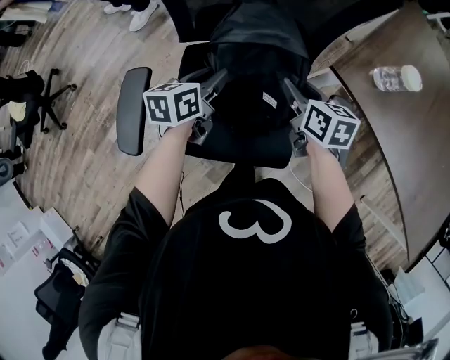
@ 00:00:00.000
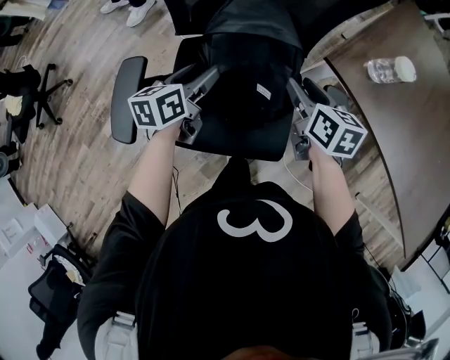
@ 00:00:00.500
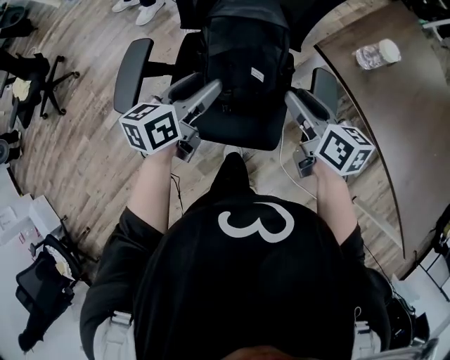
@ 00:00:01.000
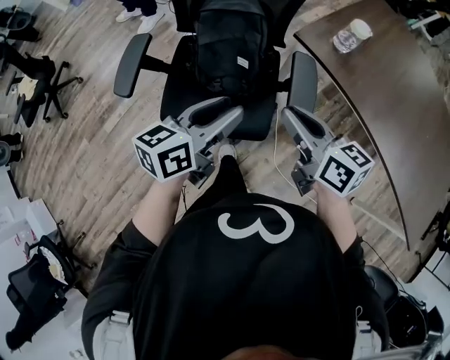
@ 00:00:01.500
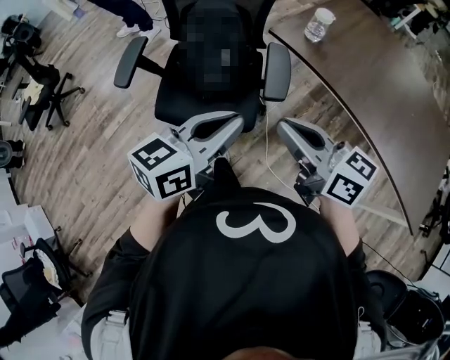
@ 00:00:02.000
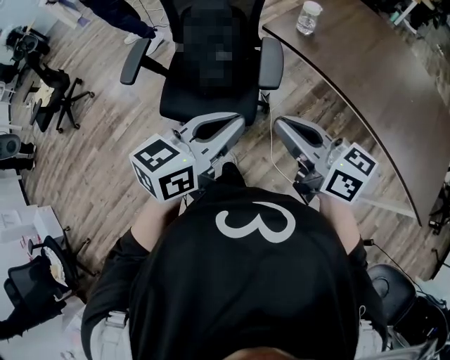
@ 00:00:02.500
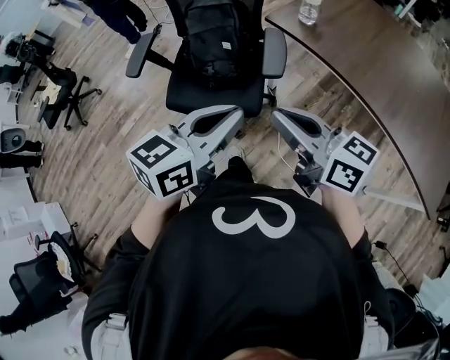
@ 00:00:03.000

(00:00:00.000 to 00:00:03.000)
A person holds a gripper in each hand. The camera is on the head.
00:00:00.000 - 00:00:01.500: The left gripper shifts some 35 cm backward, upward and to the right; the right gripper goes some 30 cm backward and upward, and swivels roughly 20 degrees.
00:00:01.500 - 00:00:03.000: The left gripper moves backward, upward and to the right, about 25 cm, and closes up. The right gripper is displaced backward and upward by about 25 cm.

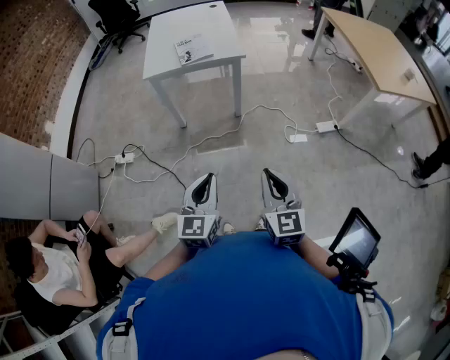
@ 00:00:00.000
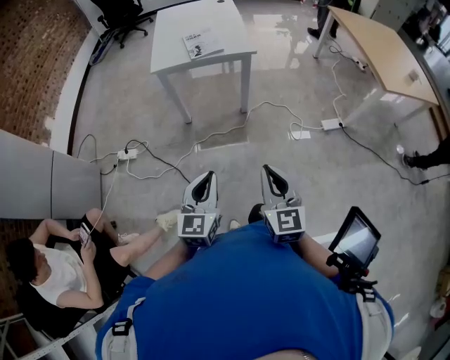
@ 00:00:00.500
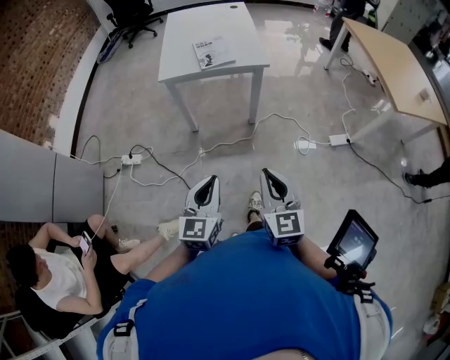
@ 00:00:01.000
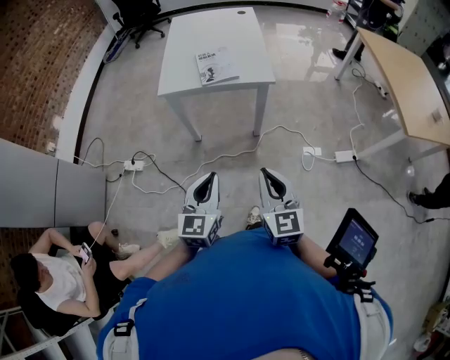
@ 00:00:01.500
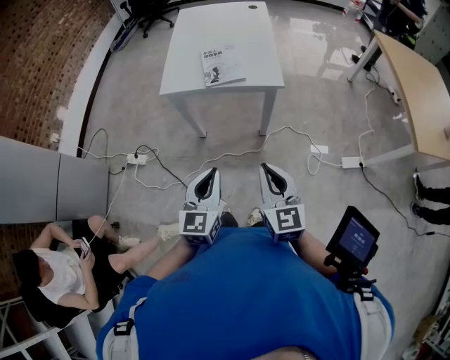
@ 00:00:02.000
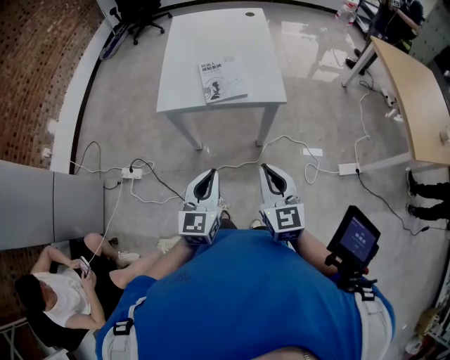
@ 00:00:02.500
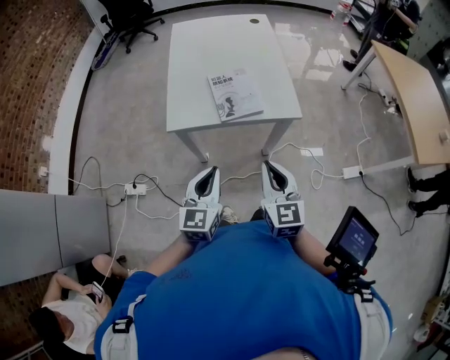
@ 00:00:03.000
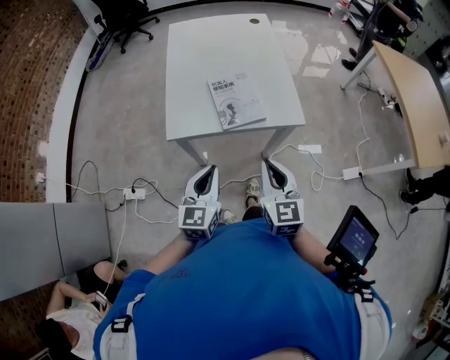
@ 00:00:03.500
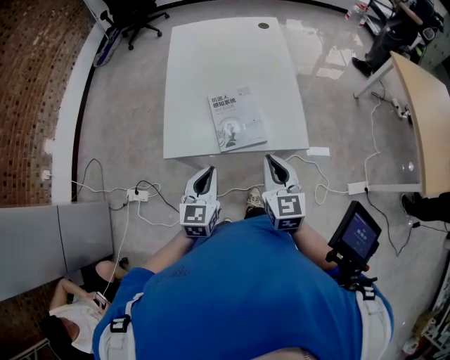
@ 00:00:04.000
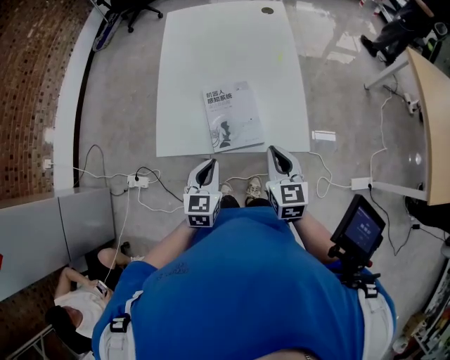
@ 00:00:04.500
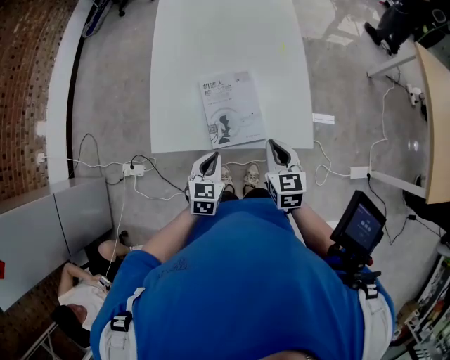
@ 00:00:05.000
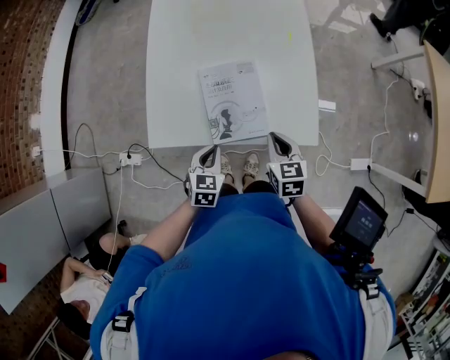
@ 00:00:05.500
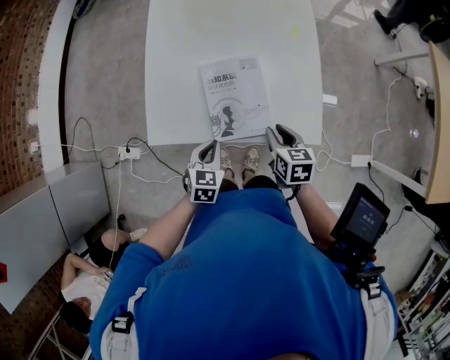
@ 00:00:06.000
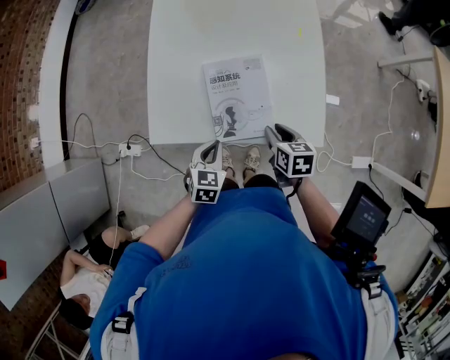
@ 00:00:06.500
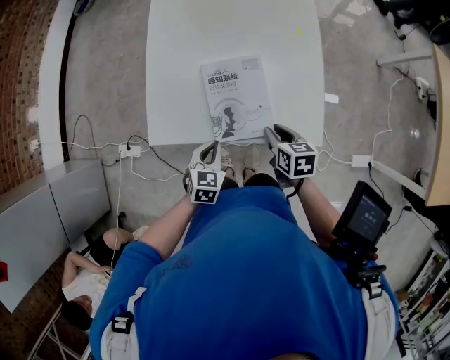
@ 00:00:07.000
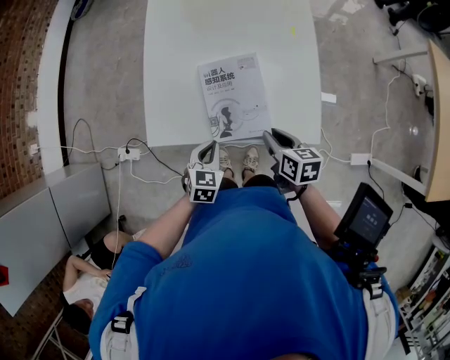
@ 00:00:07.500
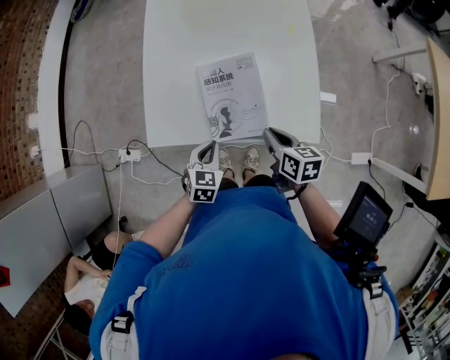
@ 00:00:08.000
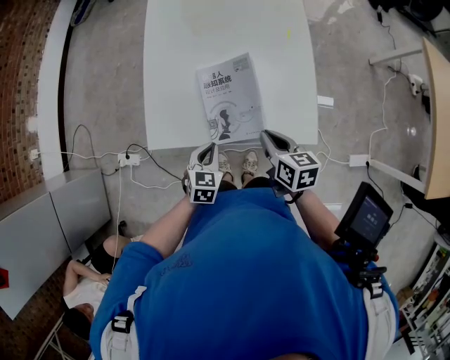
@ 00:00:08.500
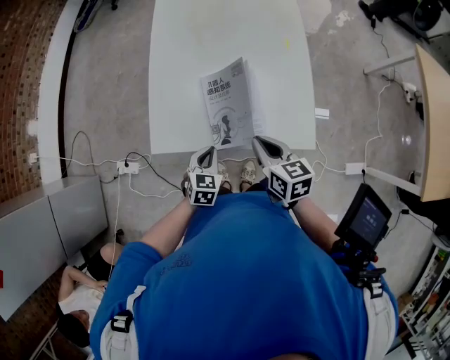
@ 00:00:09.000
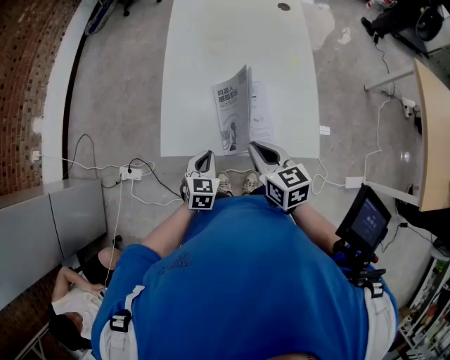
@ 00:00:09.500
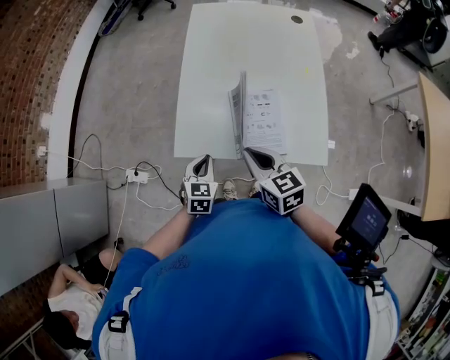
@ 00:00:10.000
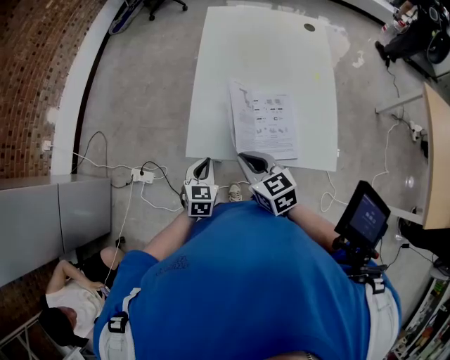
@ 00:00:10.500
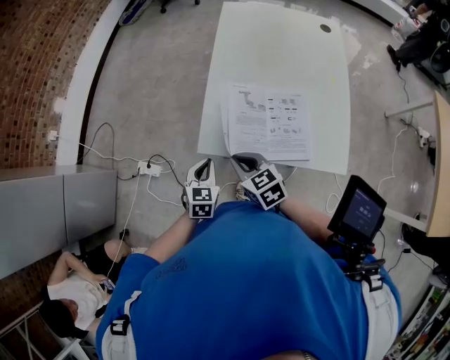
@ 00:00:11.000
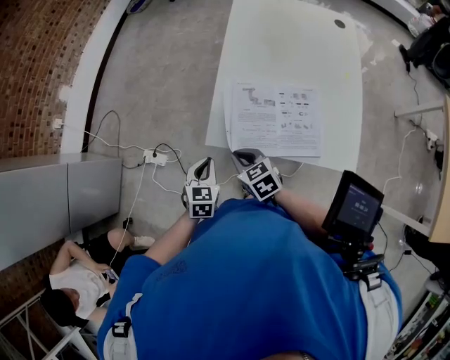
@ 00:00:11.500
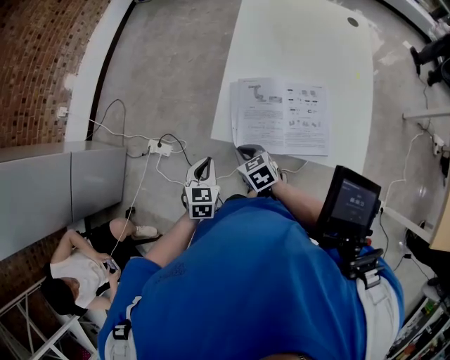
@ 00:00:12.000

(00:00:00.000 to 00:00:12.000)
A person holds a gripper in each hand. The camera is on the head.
00:00:00.000 - 00:00:02.000: The grippers both shift forward by about 30 cm.
00:00:02.000 - 00:00:04.000: Both grippers move forward, some 35 cm.
00:00:04.000 - 00:00:06.000: Both grippers move downward and forward, about 20 cm. The left gripper swivels some 30 degrees; the right gripper rotates roughly 30 degrees, and opens.
00:00:06.000 - 00:00:08.000: The grippers stay close to where they were, moving slightly.
00:00:08.000 - 00:00:10.000: The right gripper shifts about 20 cm upward and to the left, and rotates roughly 30 degrees; the left gripper shifts approximately 10 cm to the left and upward.
00:00:10.000 - 00:00:12.000: The right gripper heads to the left and downward, covering approximately 20 cm, and rotates approximately 30 degrees, while the left gripper heads to the left, covering about 15 cm.

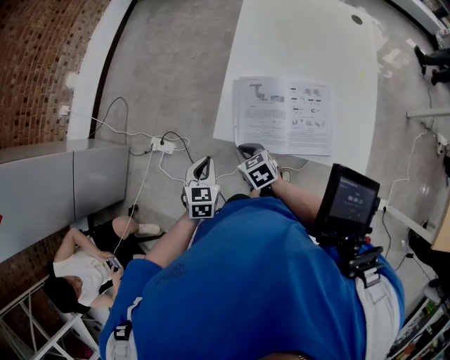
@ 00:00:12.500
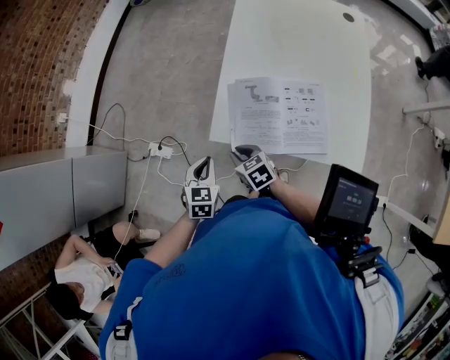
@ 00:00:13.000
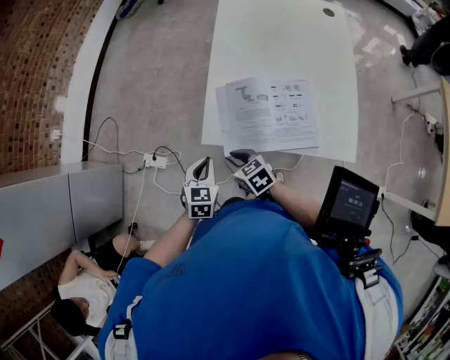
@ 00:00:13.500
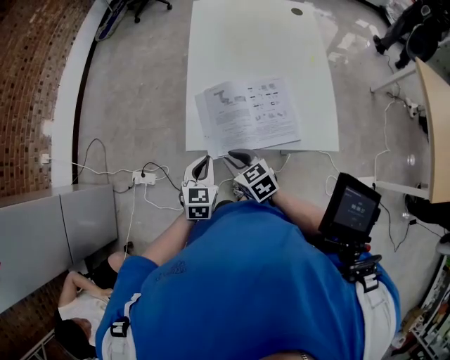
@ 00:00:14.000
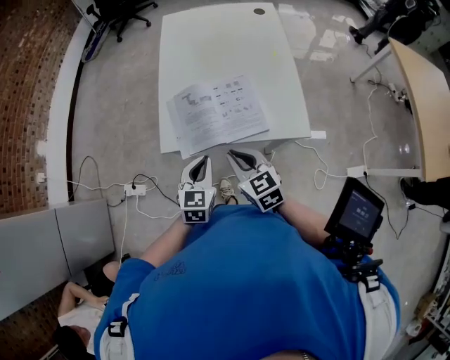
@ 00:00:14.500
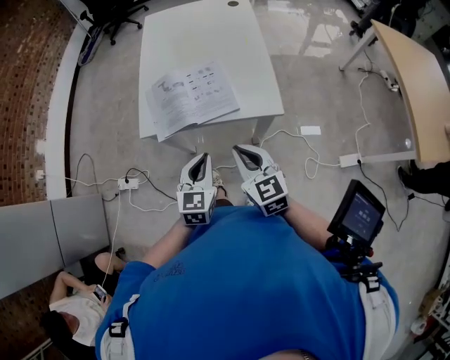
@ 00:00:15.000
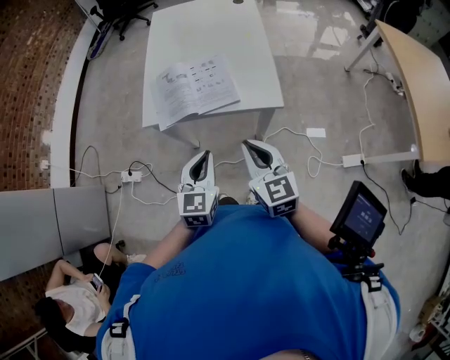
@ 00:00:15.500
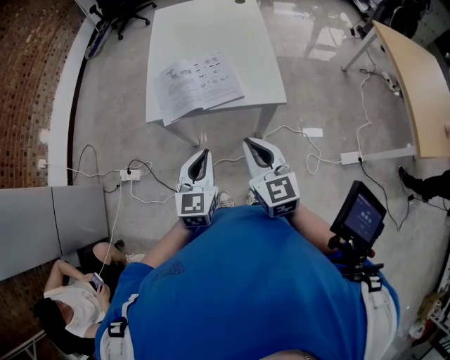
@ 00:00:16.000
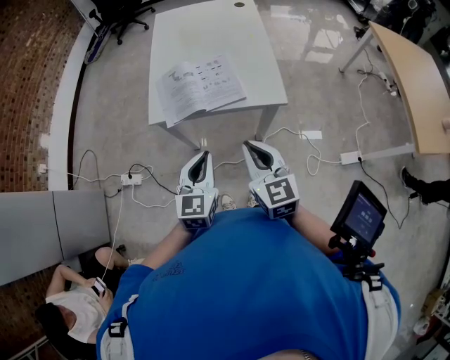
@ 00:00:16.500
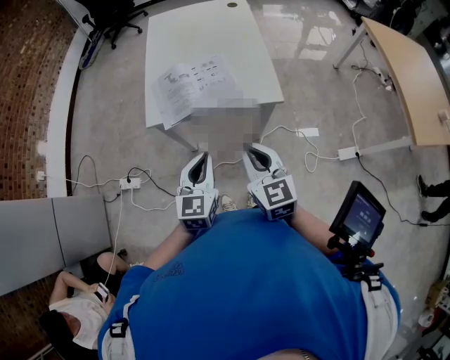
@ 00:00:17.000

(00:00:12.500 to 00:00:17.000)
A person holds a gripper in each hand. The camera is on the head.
00:00:12.500 - 00:00:14.500: The right gripper shifts by about 25 cm, and changes its angle by some 30 degrees; the left gripper shifts by roughly 20 cm, and rotates about 20 degrees.
00:00:14.500 - 00:00:17.000: The right gripper moves backward, to the right and upward, some 20 cm. The left gripper heads backward, upward and to the right, covering roughly 20 cm.

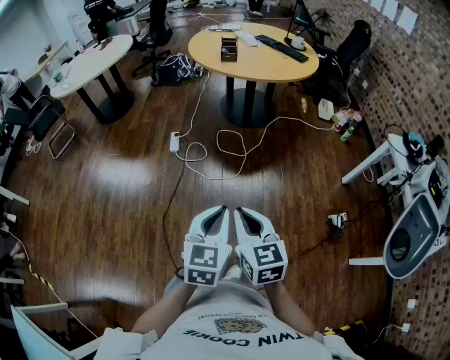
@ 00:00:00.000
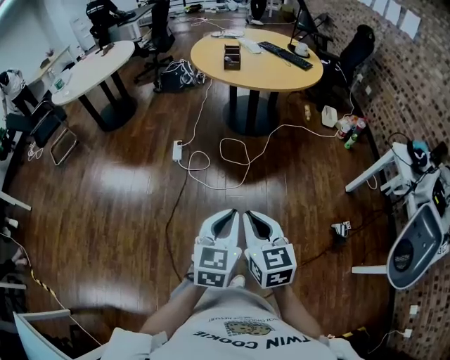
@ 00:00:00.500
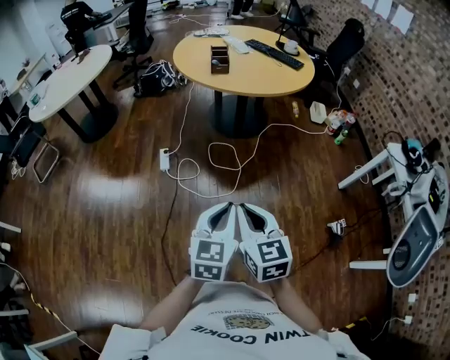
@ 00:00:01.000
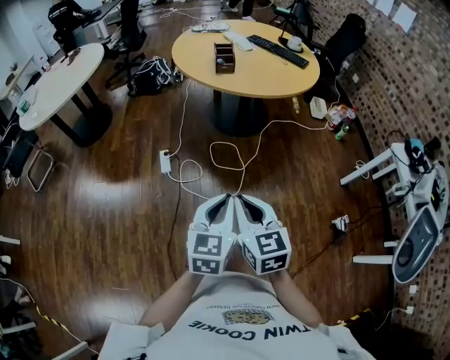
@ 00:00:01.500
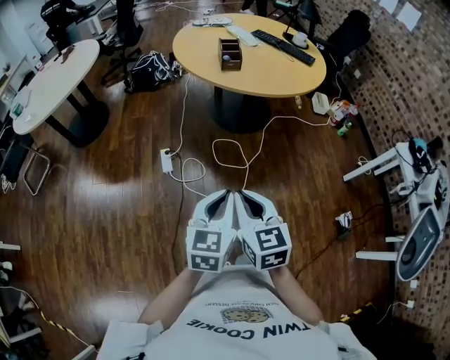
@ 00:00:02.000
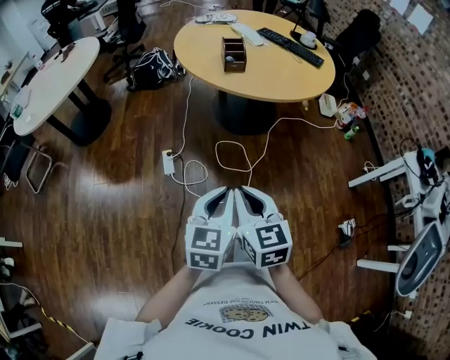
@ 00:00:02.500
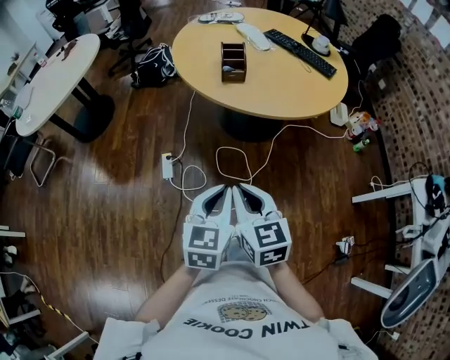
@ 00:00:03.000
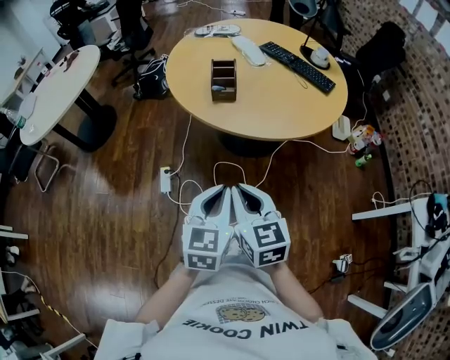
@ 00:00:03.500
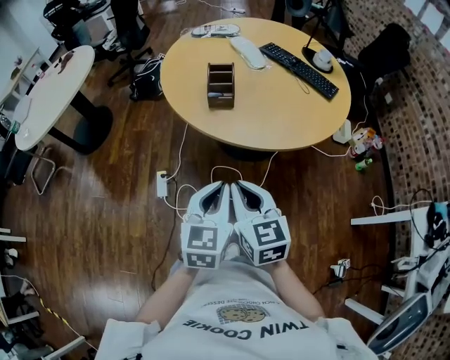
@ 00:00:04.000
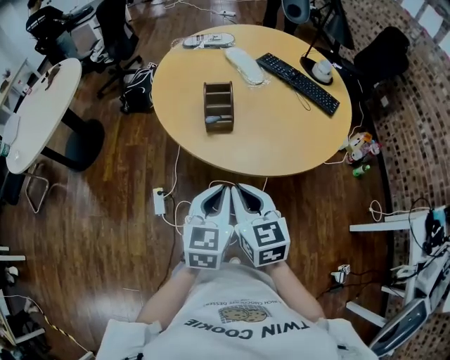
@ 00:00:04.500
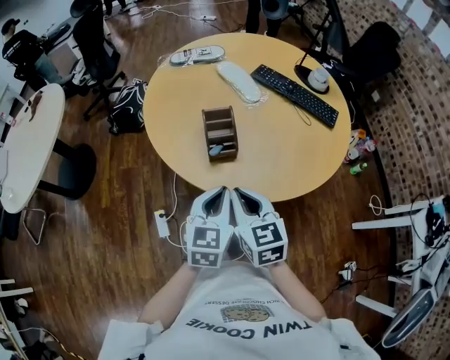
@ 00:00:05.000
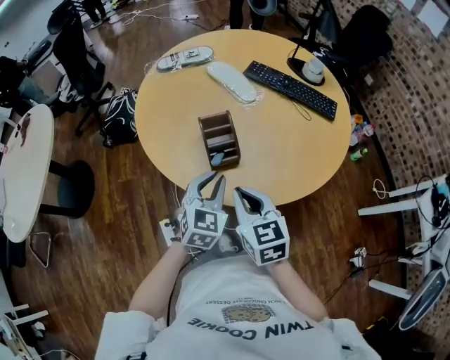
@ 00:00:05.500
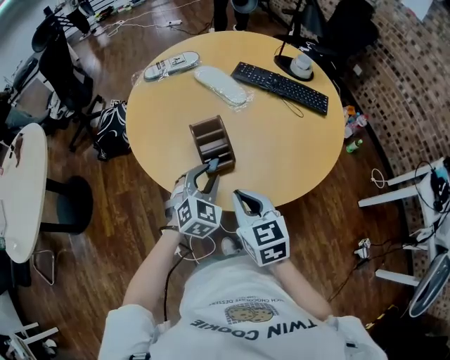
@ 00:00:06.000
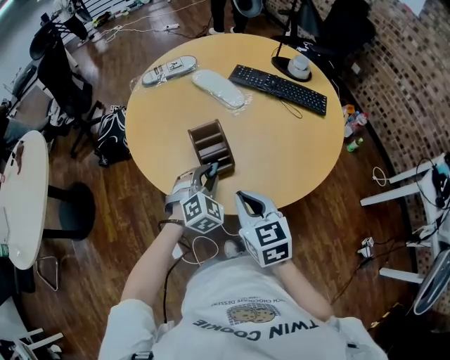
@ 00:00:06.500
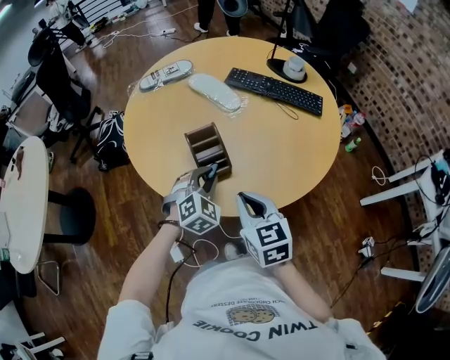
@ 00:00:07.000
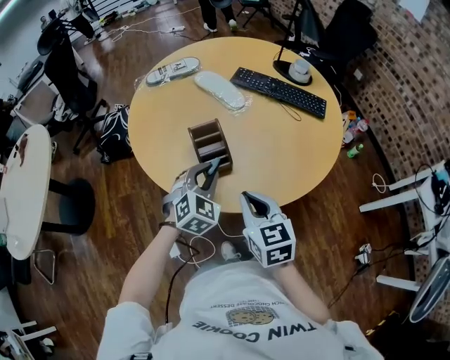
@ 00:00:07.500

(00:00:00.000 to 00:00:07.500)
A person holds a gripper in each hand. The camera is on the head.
00:00:00.000 - 00:00:02.000: The grippers both shift forward and to the left by some 35 cm.
00:00:02.000 - 00:00:04.000: Both grippers travel together forward and to the right, approximately 35 cm.
00:00:04.000 - 00:00:05.500: Both grippers move forward, about 30 cm. The left gripper turns by roughly 30 degrees.
00:00:05.500 - 00:00:07.500: The left gripper changes its angle by some 20 degrees.
